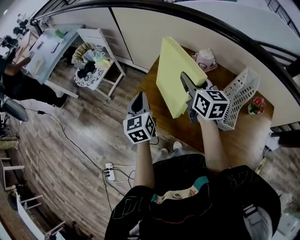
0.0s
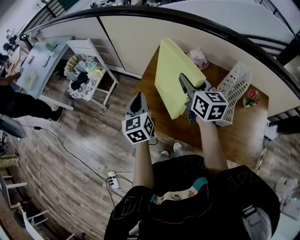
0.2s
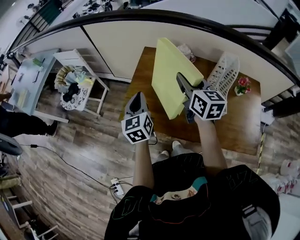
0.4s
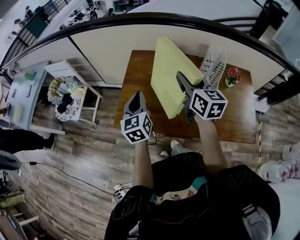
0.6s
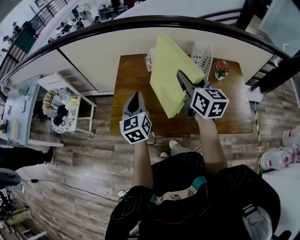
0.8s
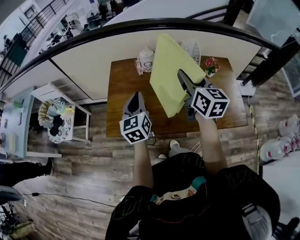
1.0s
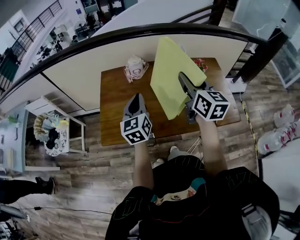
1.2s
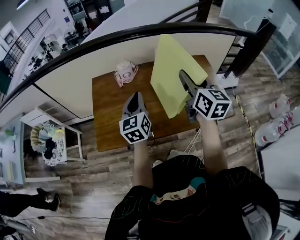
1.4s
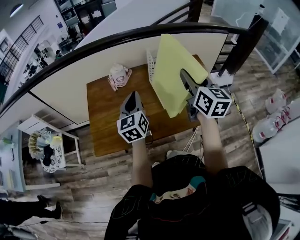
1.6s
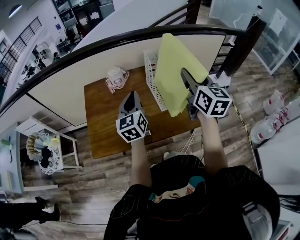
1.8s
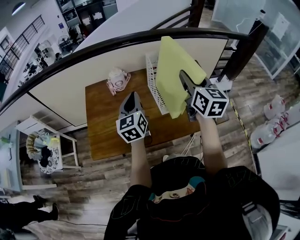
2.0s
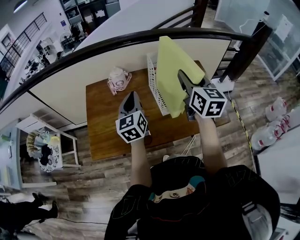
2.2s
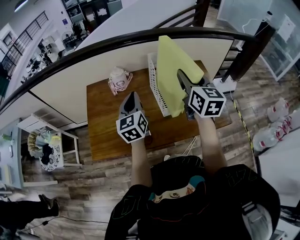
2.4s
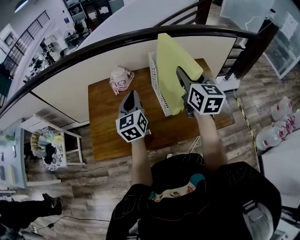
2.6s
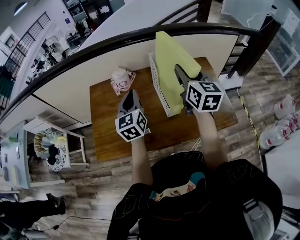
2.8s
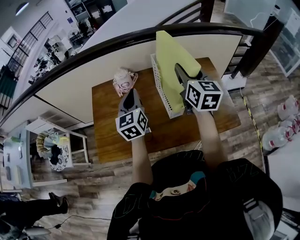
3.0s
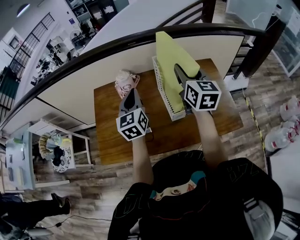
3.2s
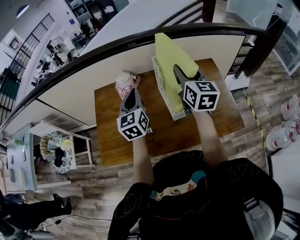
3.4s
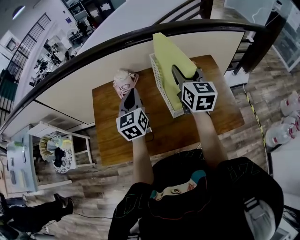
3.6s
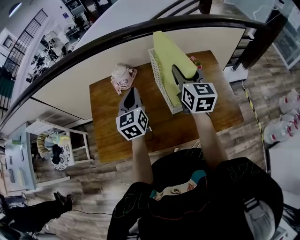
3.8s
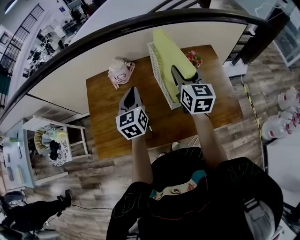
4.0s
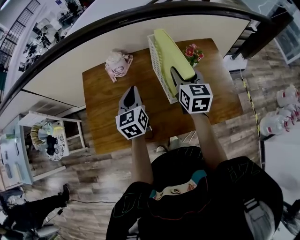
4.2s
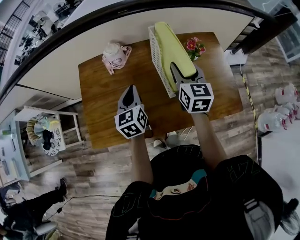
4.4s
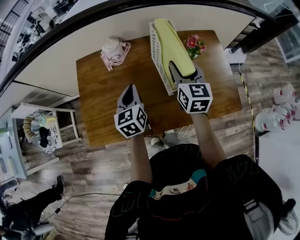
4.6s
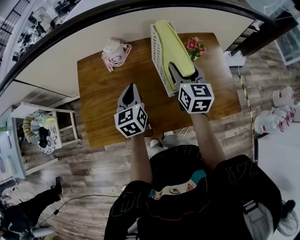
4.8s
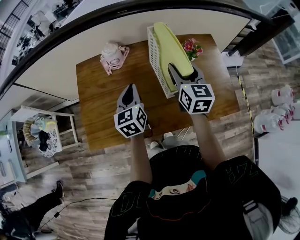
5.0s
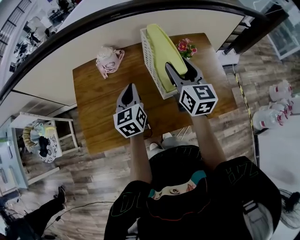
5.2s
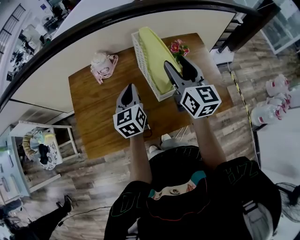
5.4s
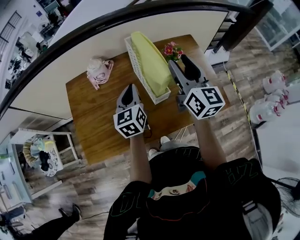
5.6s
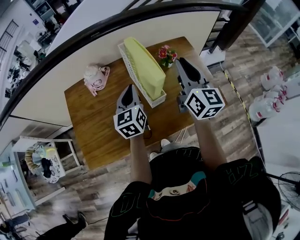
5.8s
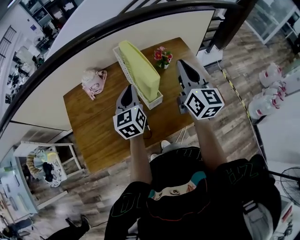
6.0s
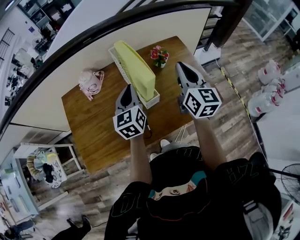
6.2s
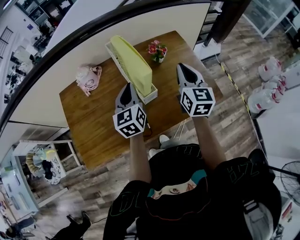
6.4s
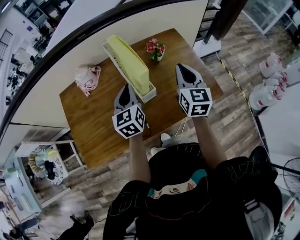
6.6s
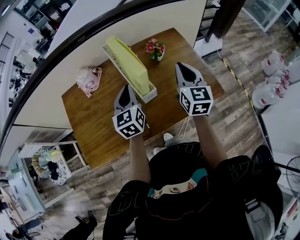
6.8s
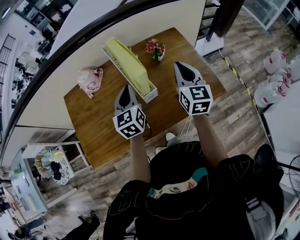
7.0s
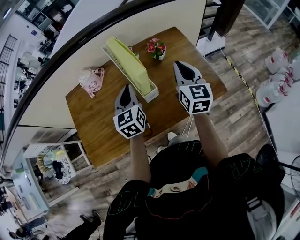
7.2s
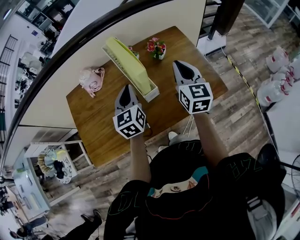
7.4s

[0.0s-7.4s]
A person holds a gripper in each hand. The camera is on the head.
0.0s to 1.4s: The right gripper moves roughly 30 cm, and rotates about 40 degrees, while the left gripper shifts by roughly 25 cm, and swivels roughly 40 degrees.
1.4s to 3.0s: The two grippers go about 10 cm forward.
3.0s to 4.4s: The two grippers go some 10 cm downward.
4.4s to 6.0s: The right gripper moves to the right, upward and backward, about 15 cm, turns by about 20 degrees, and closes up. Meanwhile the left gripper heads to the right and upward, covering some 15 cm.
6.0s to 7.4s: The right gripper shifts some 5 cm downward.

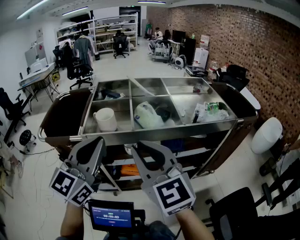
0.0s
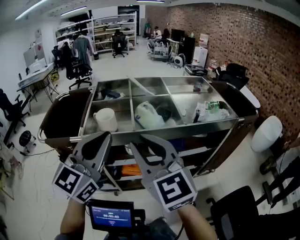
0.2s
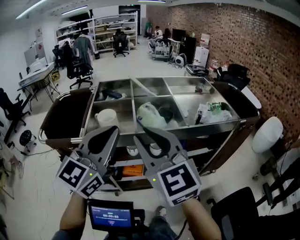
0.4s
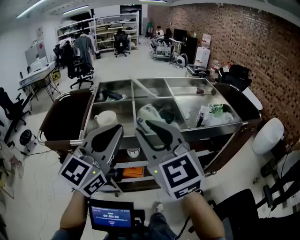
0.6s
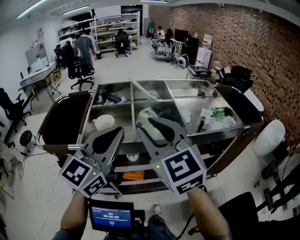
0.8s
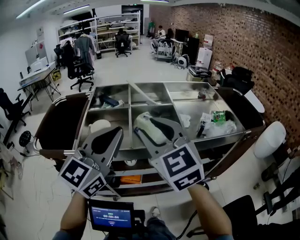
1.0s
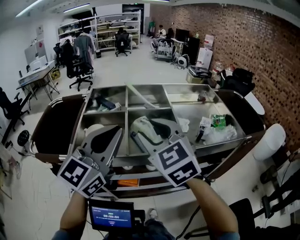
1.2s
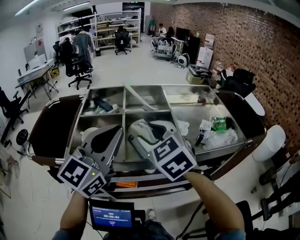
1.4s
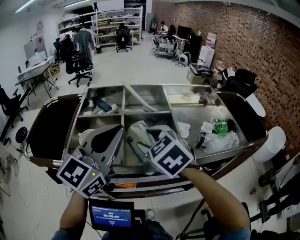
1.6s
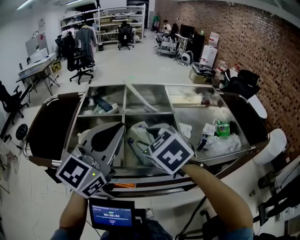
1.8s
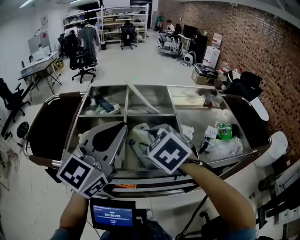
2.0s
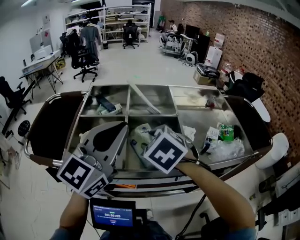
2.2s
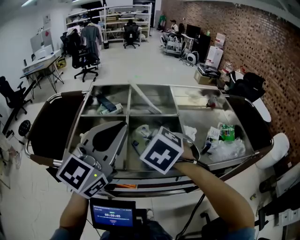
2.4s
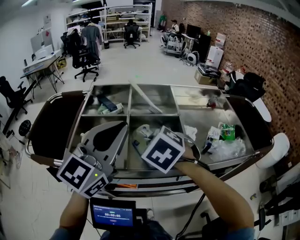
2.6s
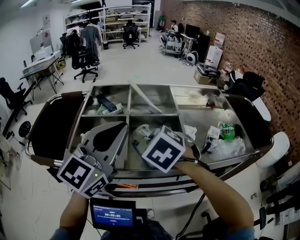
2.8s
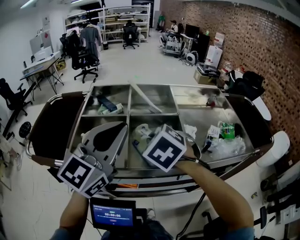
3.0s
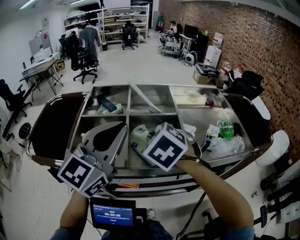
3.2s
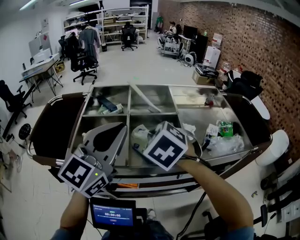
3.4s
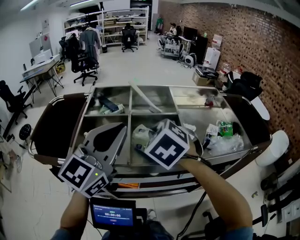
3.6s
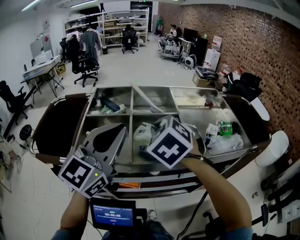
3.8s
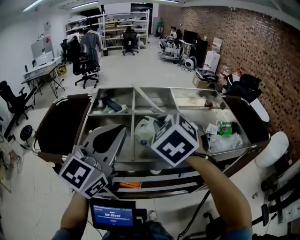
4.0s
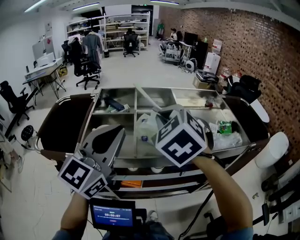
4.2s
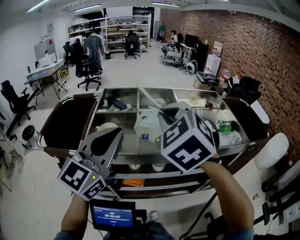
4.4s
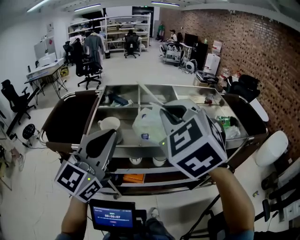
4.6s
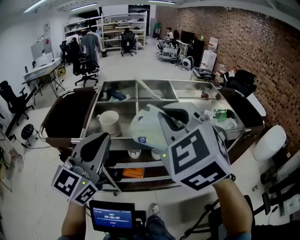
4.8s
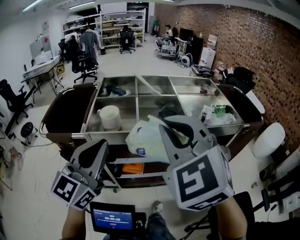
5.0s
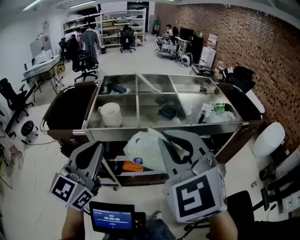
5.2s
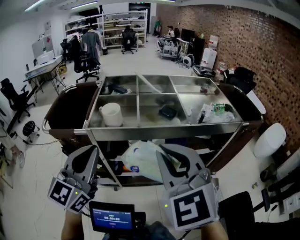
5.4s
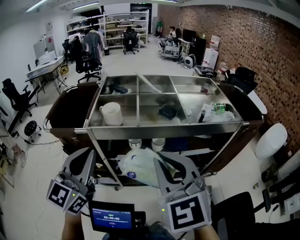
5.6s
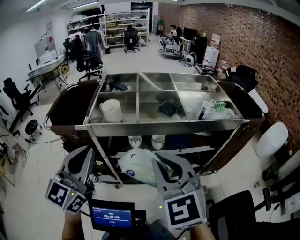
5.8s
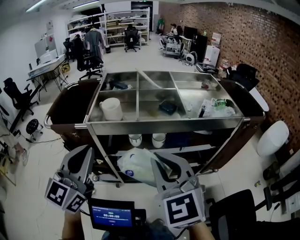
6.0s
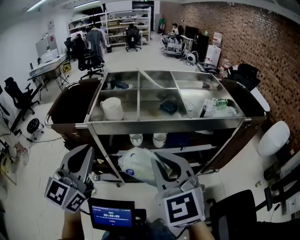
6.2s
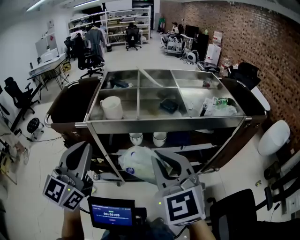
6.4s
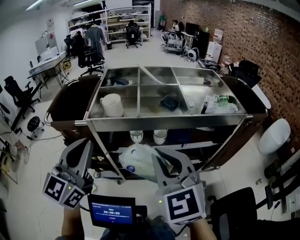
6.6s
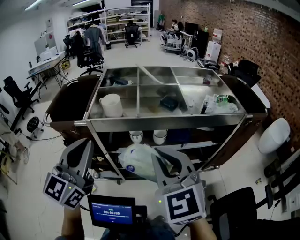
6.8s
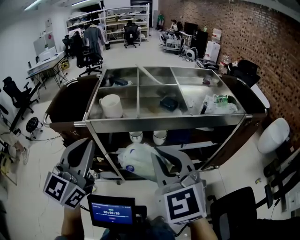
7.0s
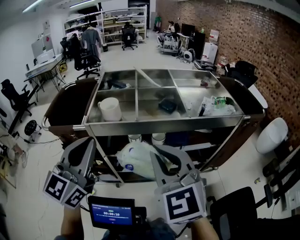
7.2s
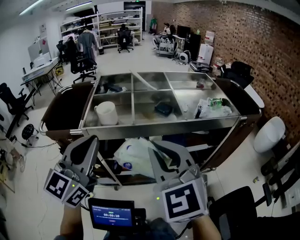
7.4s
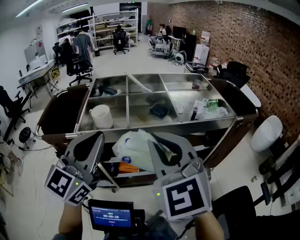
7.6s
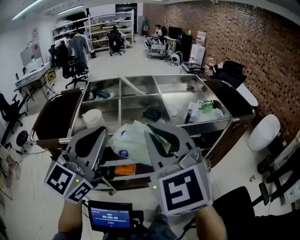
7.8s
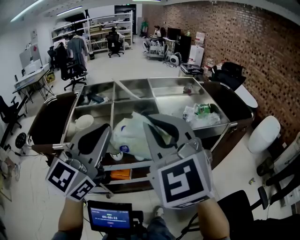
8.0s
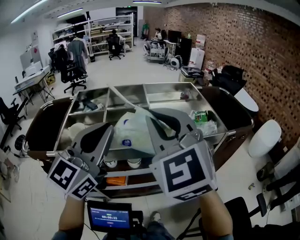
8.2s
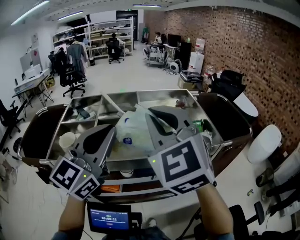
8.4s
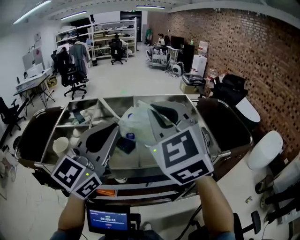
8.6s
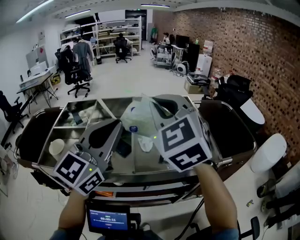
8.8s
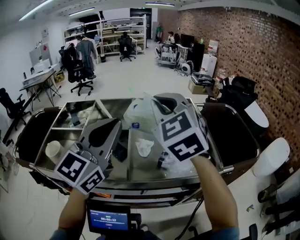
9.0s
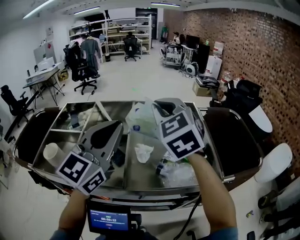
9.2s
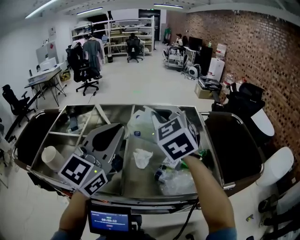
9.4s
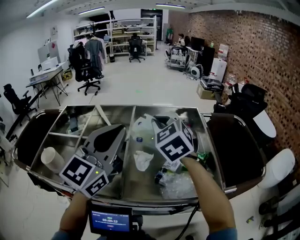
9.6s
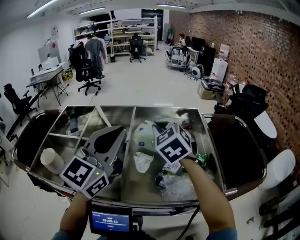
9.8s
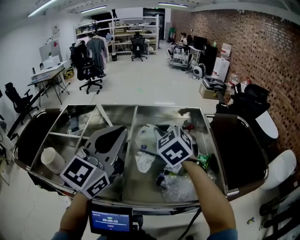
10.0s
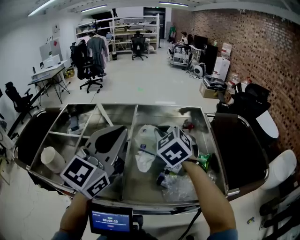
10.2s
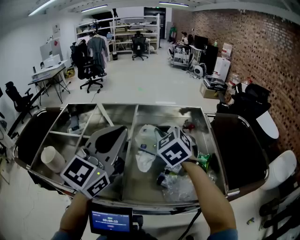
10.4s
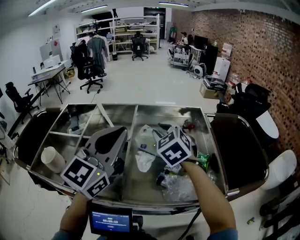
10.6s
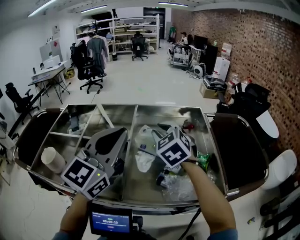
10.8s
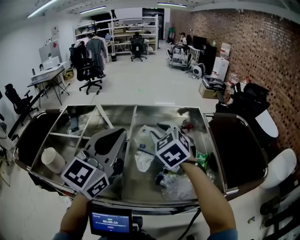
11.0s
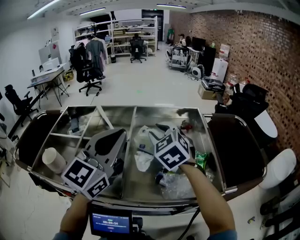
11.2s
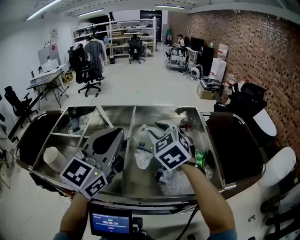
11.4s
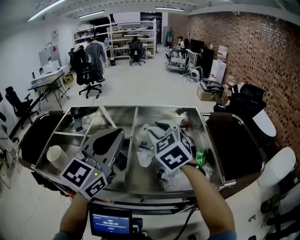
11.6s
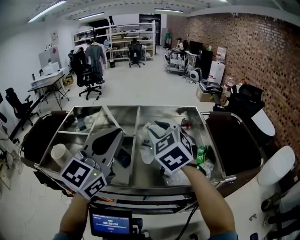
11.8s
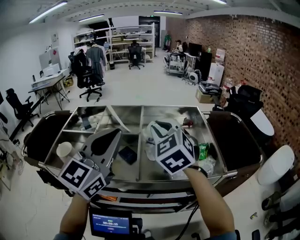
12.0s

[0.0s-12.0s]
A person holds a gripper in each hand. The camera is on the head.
0.0s to 1.6s: The left gripper moves forward and to the right, about 20 cm, while the right gripper shifts about 20 cm forward, tilts its fingers some 40 degrees downward, and opens up.
1.6s to 3.0s: The right gripper closes.
3.0s to 4.4s: The left gripper shifts some 10 cm backward, while the right gripper shifts about 15 cm upward and backward, and turns by approximately 30 degrees.
4.4s to 6.0s: The right gripper moves backward, approximately 25 cm, and changes its angle by roughly 30 degrees. Meanwhile the left gripper is displaced backward and to the left by about 15 cm.
6.0s to 7.6s: The right gripper moves upward, roughly 5 cm; the left gripper shifts about 10 cm to the right and forward.
7.6s to 9.0s: The two grippers go approximately 35 cm forward and to the right.
9.0s to 10.4s: The right gripper goes roughly 20 cm downward and forward. The left gripper moves forward, about 5 cm.
10.4s to 12.0s: The left gripper moves backward, approximately 10 cm. Meanwhile the right gripper is displaced backward and upward by about 15 cm.

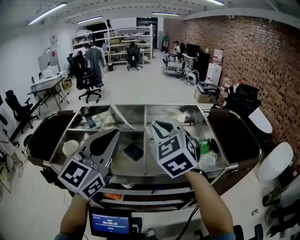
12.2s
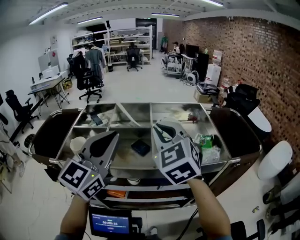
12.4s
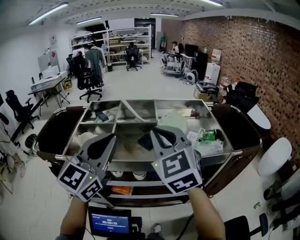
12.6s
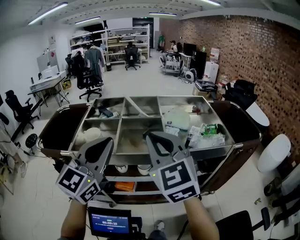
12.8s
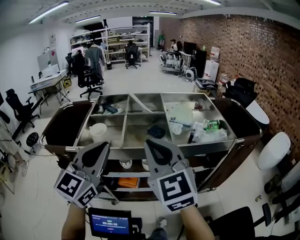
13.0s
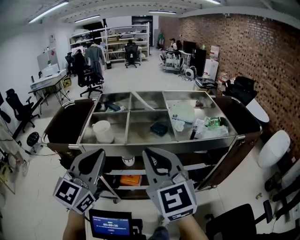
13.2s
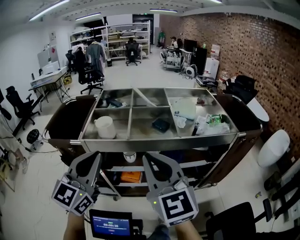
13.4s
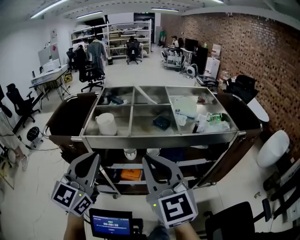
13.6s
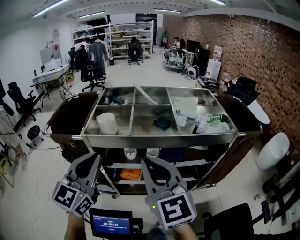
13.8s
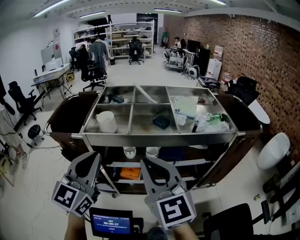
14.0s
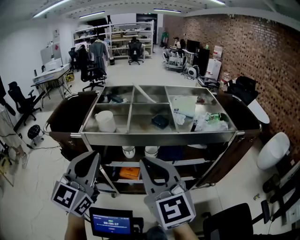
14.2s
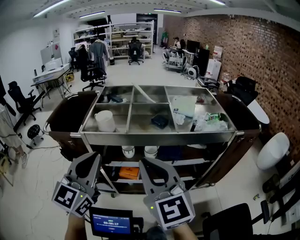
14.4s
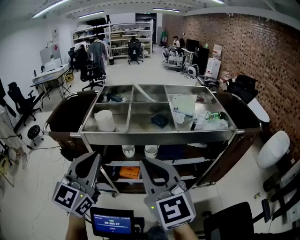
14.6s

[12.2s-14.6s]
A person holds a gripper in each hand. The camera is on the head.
12.2s to 13.4s: The left gripper heads to the left and backward, covering about 25 cm. Meanwhile the right gripper heads backward and to the left, covering approximately 30 cm, and rotates roughly 30 degrees.
13.4s to 14.6s: The grippers stay close to where they were, moving slightly.

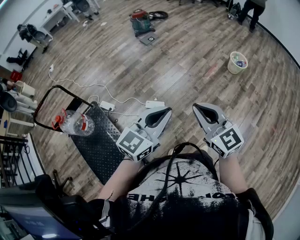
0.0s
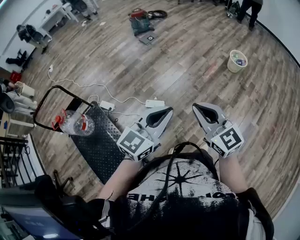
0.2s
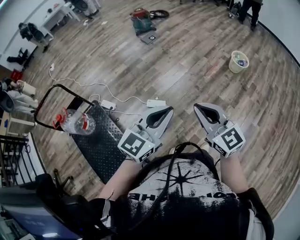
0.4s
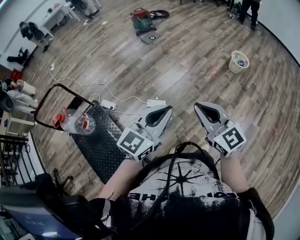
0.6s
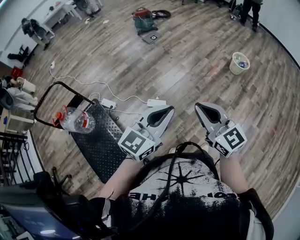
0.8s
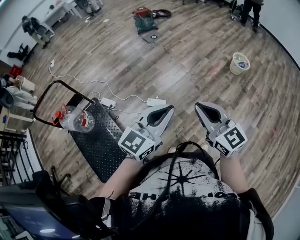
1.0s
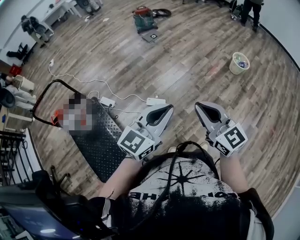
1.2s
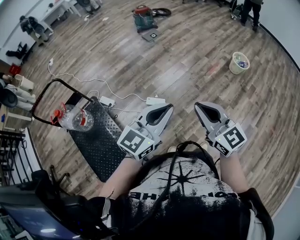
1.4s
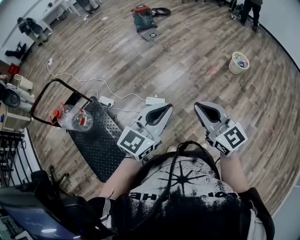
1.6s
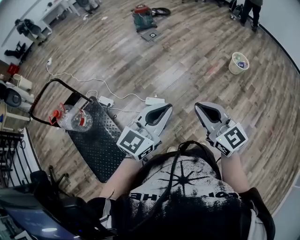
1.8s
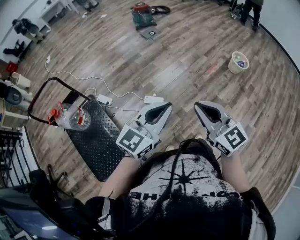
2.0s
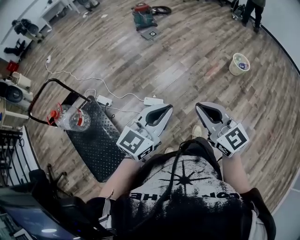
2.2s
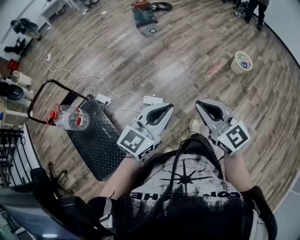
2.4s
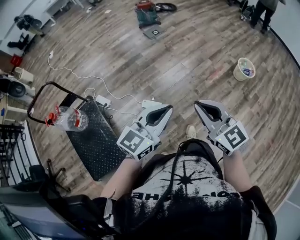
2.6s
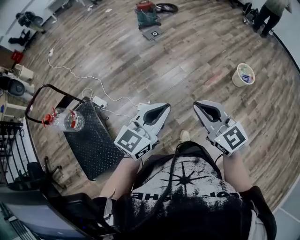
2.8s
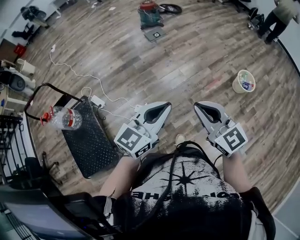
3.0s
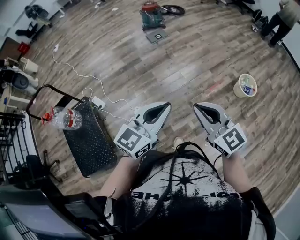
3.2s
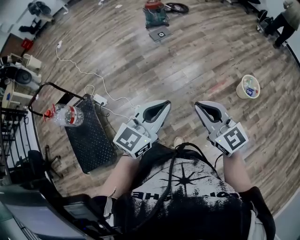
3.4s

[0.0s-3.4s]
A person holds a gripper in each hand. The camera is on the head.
0.0s to 1.6s: The grippers make only small movements.
1.6s to 3.4s: Both grippers move forward and to the right, approximately 35 cm.
